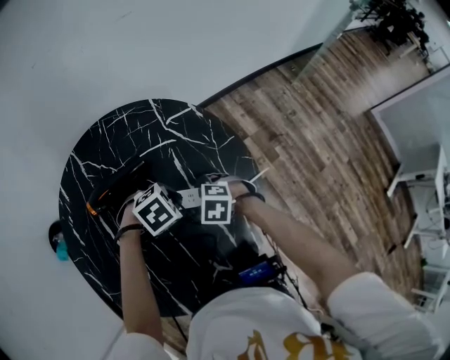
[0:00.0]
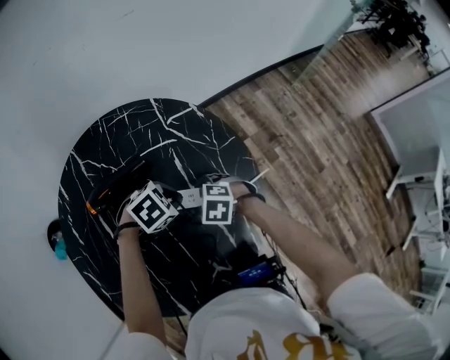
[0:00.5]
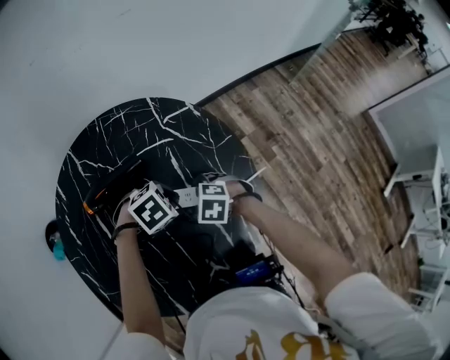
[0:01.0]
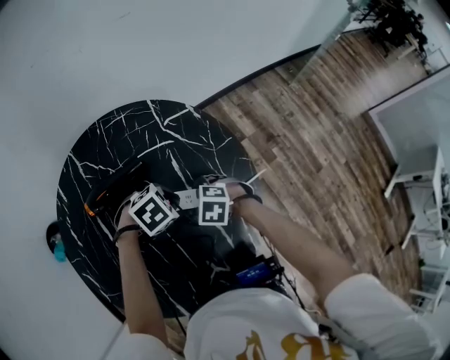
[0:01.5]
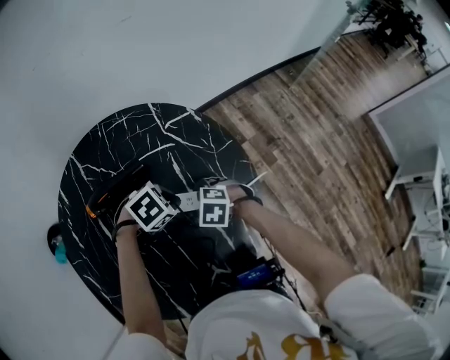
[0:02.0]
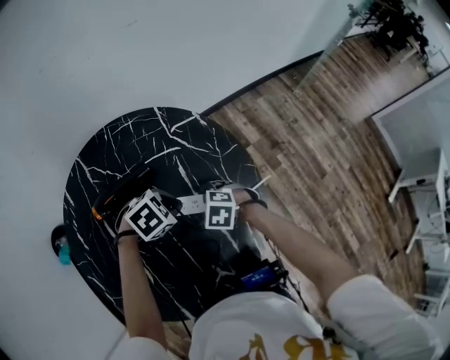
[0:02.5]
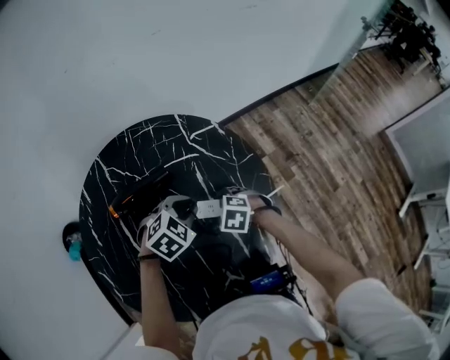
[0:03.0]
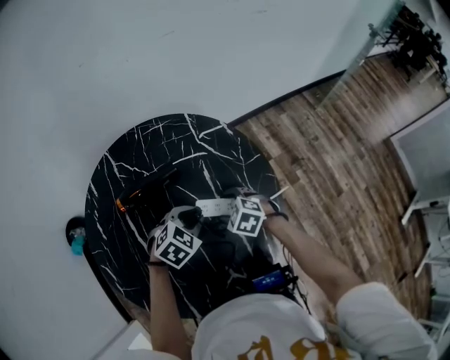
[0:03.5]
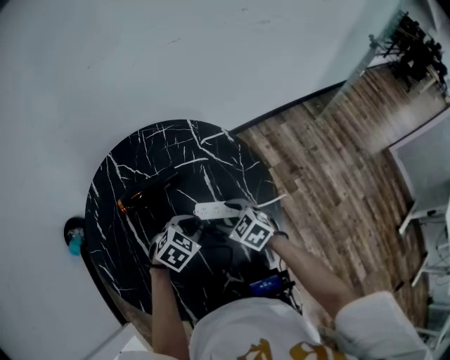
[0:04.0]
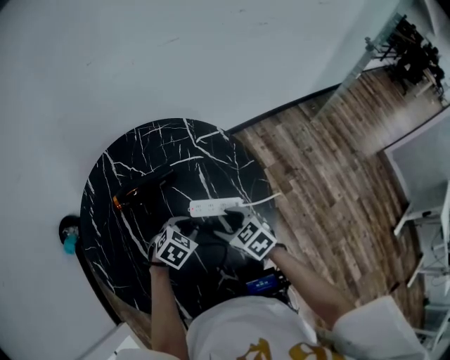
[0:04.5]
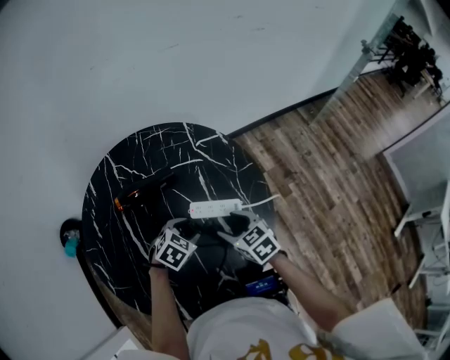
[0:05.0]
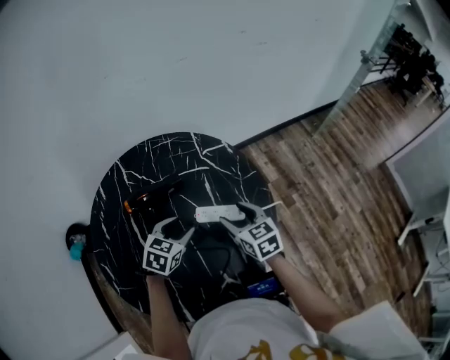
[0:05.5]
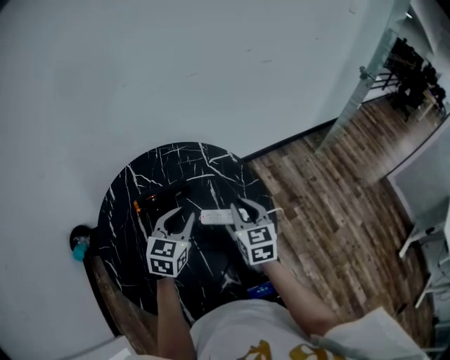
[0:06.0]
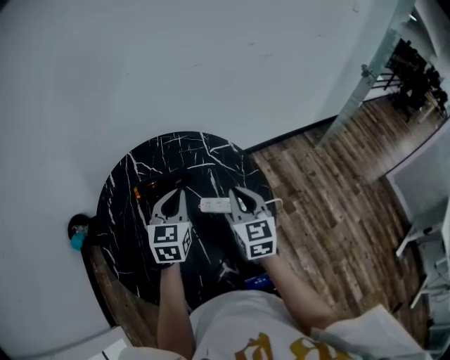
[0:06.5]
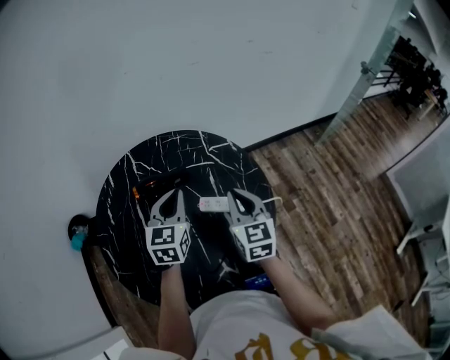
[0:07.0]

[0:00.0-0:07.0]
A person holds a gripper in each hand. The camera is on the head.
0:00.0 to 0:02.0: There are only small adjustments of the grippers.
0:02.0 to 0:03.5: The left gripper turns by approximately 30 degrees.
0:03.5 to 0:05.0: The left gripper moves some 5 cm, and opens up. Meanwhile the right gripper shifts roughly 5 cm upward, and swivels approximately 30 degrees.
0:05.0 to 0:07.0: Both grippers travel together upward, roughly 20 cm. The left gripper points its fingers some 40 degrees further upward, and closes its fingers; the right gripper changes its angle by some 40 degrees, and closes its fingers.

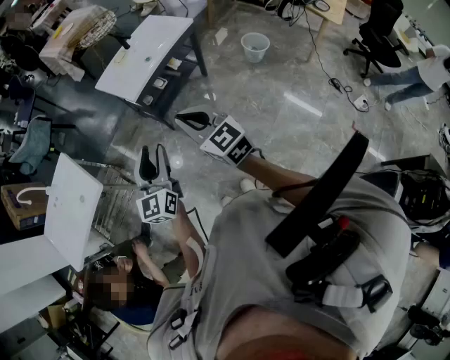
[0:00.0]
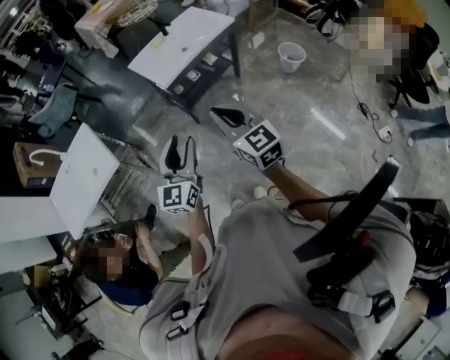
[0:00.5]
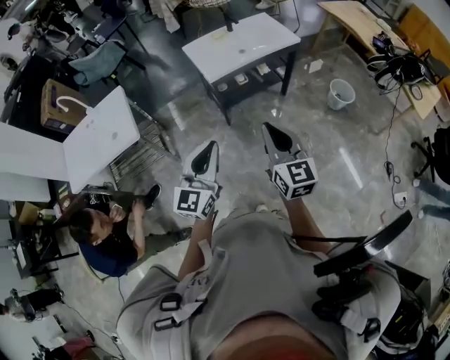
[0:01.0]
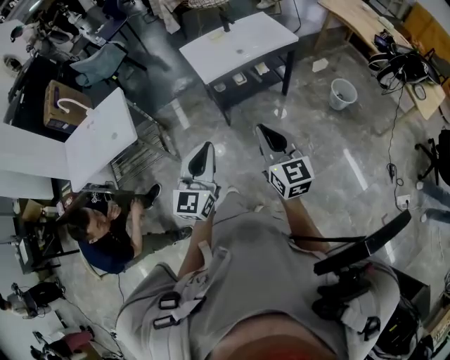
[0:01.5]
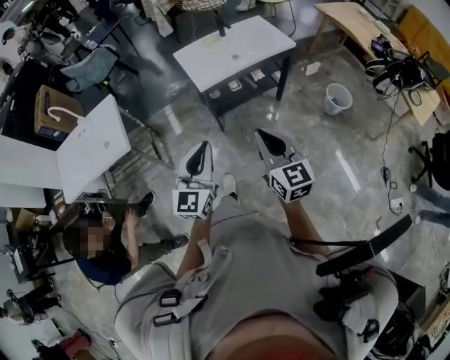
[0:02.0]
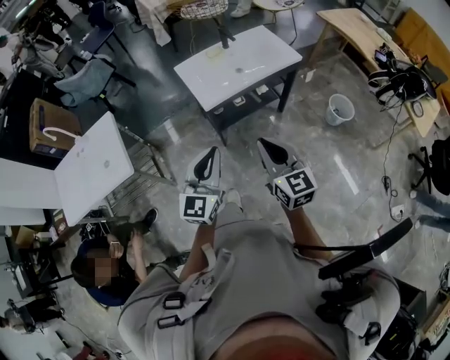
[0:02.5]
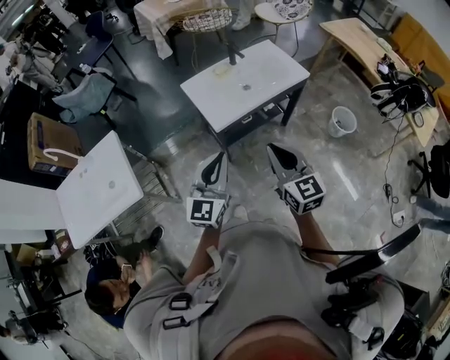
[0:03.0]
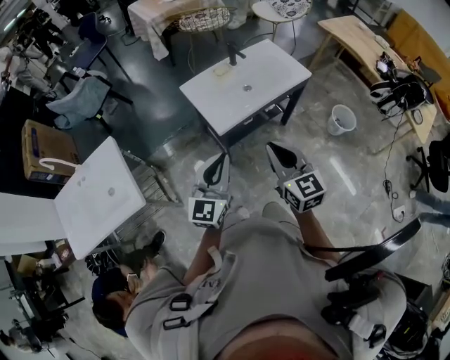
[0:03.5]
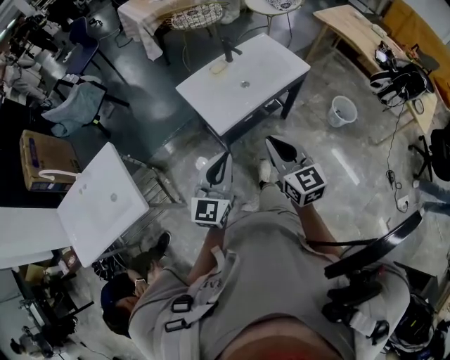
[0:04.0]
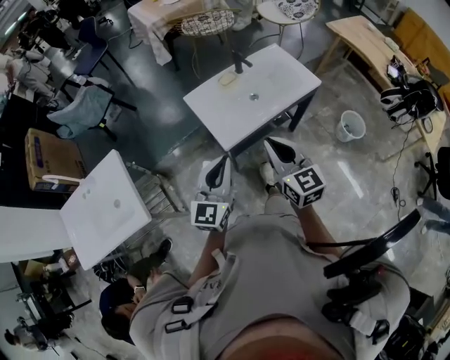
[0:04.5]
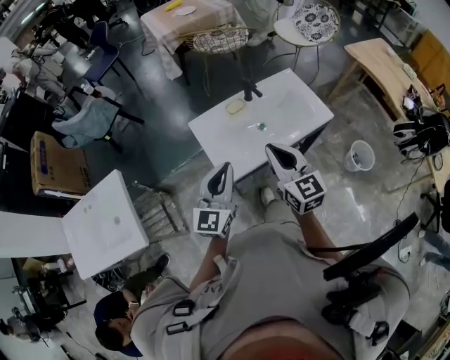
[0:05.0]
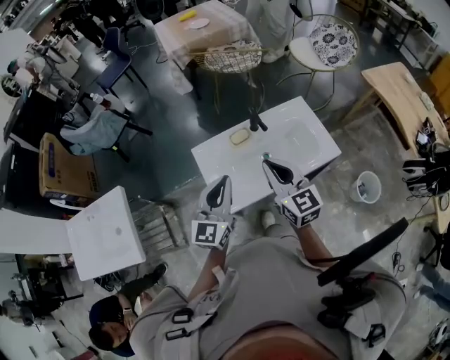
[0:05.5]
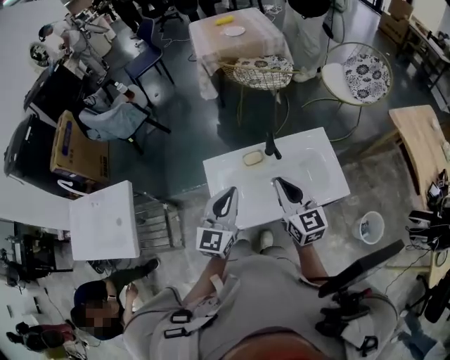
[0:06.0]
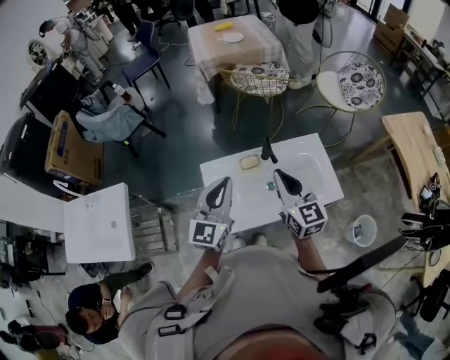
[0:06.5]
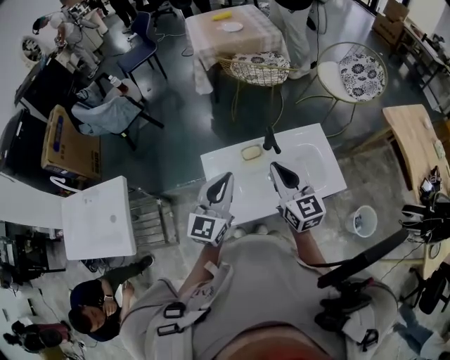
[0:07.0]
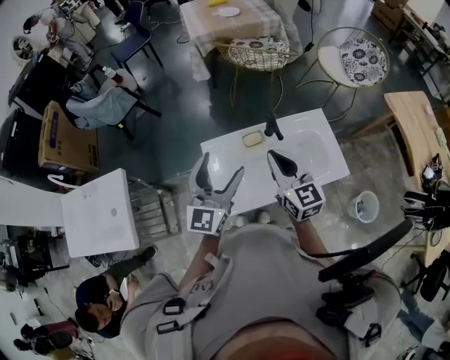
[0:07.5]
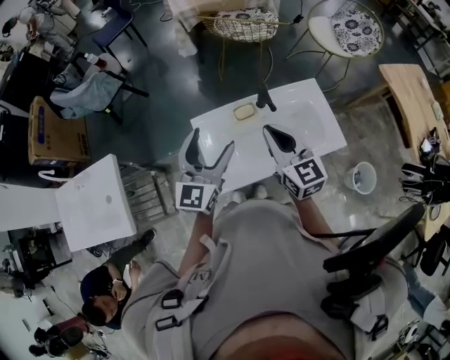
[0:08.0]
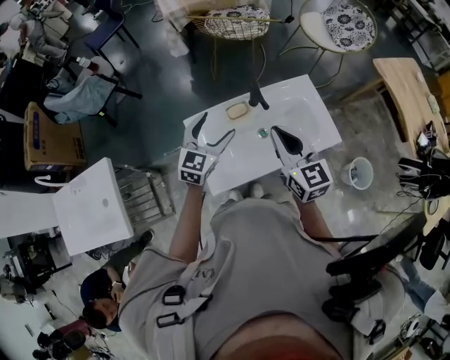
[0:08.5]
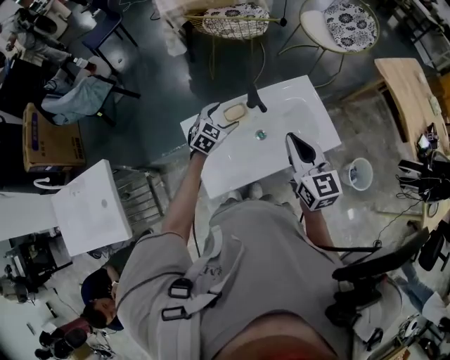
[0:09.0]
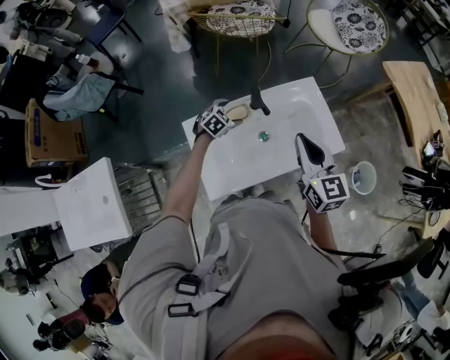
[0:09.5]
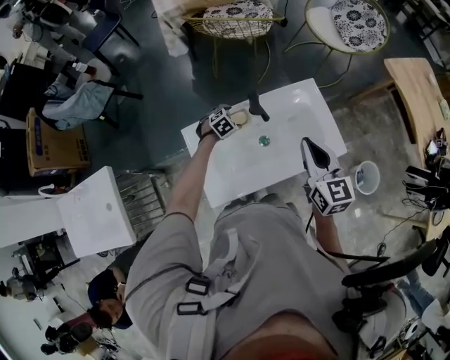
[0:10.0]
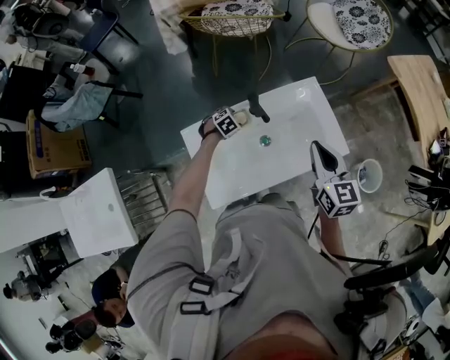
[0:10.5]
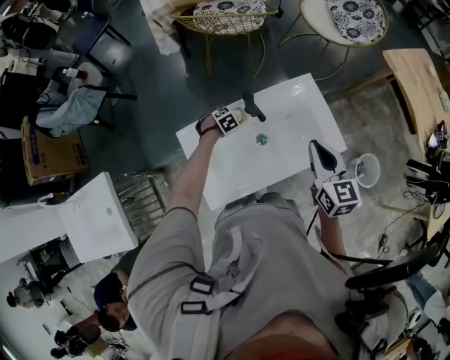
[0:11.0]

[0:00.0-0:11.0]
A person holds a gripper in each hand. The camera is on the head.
0:00.0 to 0:02.0: The left gripper is displaced forward by some 5 cm, and closes; the right gripper is displaced to the right and forward by approximately 10 cm.
0:02.0 to 0:03.5: The two grippers go about 25 cm forward and to the left.
0:03.5 to 0:05.5: Both grippers travel together forward, roughly 35 cm.
0:05.5 to 0:07.5: The two grippers go roughly 10 cm forward. The left gripper opens.
0:07.5 to 0:09.0: The right gripper is displaced to the right by some 10 cm; the left gripper travels downward and forward by approximately 30 cm, and points its fingers approximately 40 degrees further downward.
0:09.0 to 0:11.0: The left gripper goes about 20 cm downward, angles its fingers downward, by some 40 degrees, and closes; the right gripper moves about 10 cm.

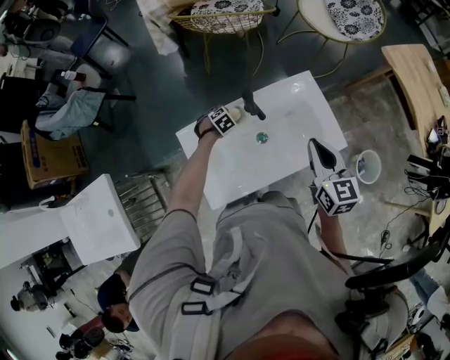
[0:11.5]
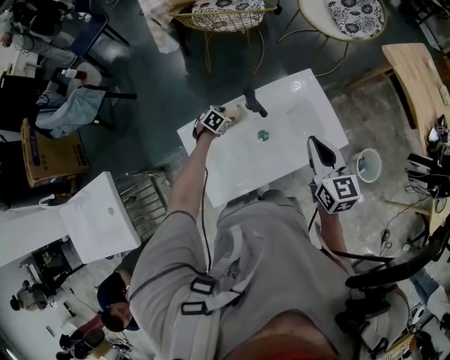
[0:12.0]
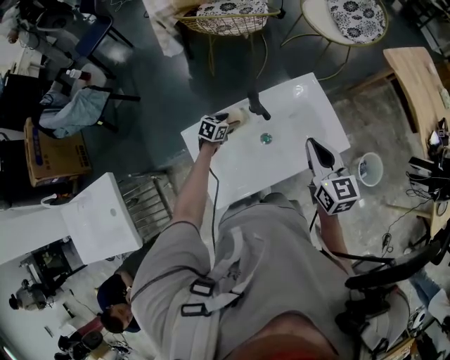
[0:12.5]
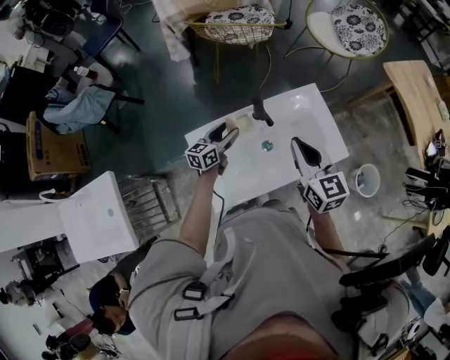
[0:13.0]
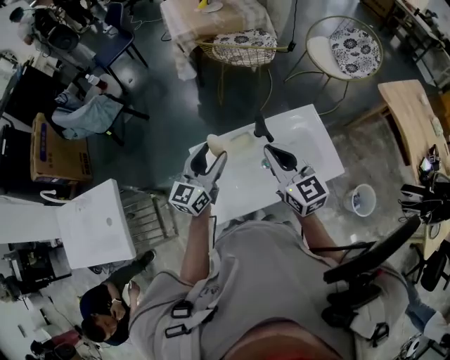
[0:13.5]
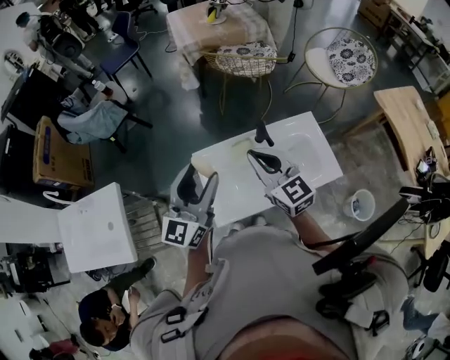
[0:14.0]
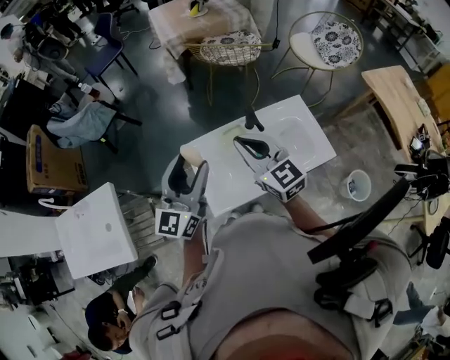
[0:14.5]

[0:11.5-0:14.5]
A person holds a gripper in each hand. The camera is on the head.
0:11.5 to 0:13.0: The right gripper moves to the left, approximately 10 cm. The left gripper goes approximately 20 cm upward, and tilts its fingers approximately 60 degrees upward.
0:13.0 to 0:14.5: The left gripper shifts about 35 cm upward and backward, and swivels about 40 degrees. Meanwhile the right gripper travels to the left and upward by approximately 20 cm, and changes its angle by approximately 20 degrees.

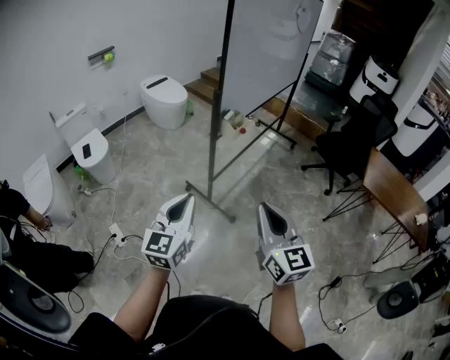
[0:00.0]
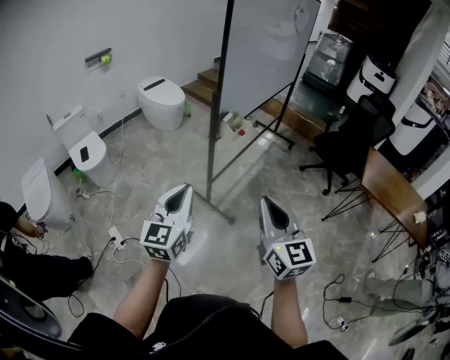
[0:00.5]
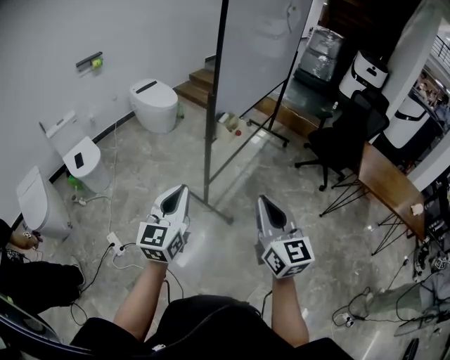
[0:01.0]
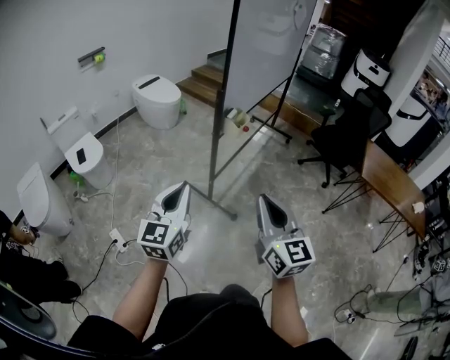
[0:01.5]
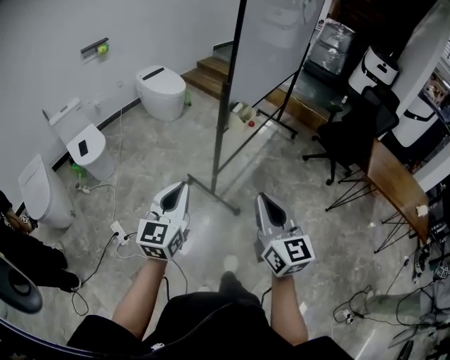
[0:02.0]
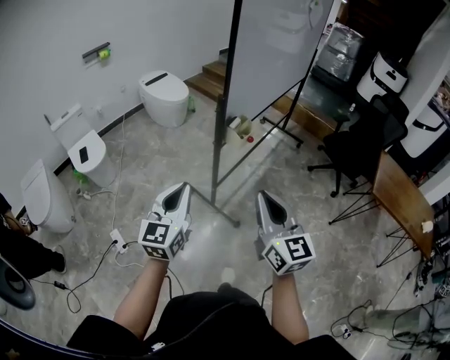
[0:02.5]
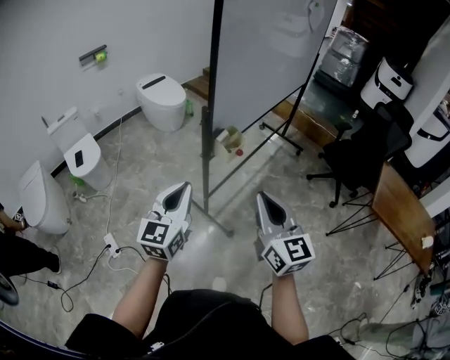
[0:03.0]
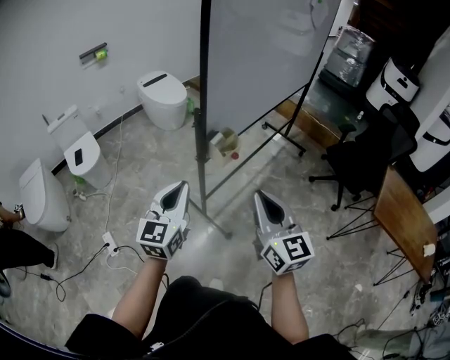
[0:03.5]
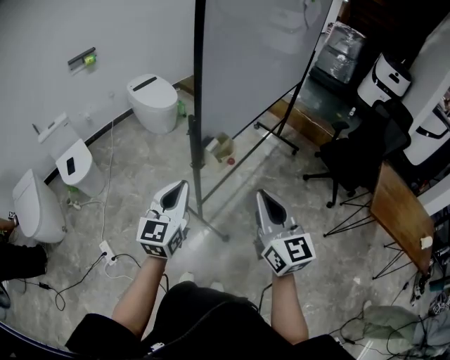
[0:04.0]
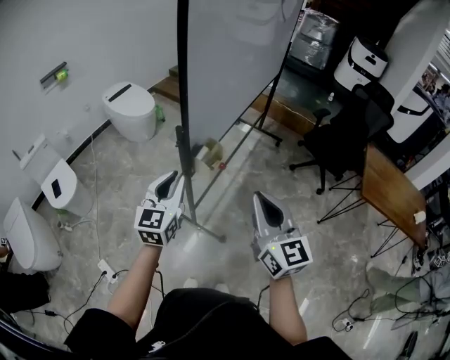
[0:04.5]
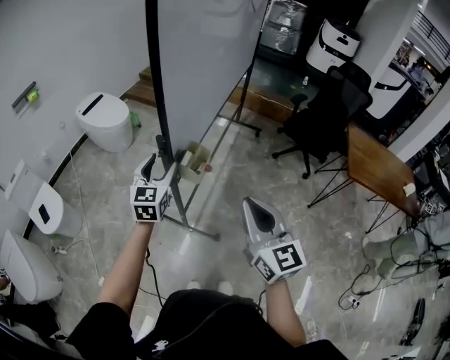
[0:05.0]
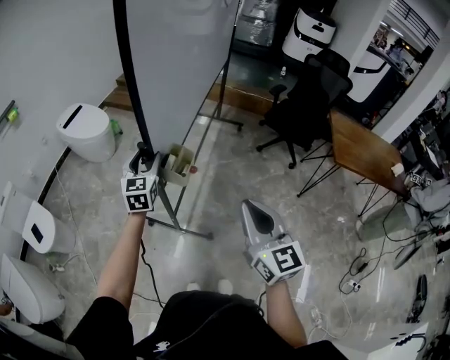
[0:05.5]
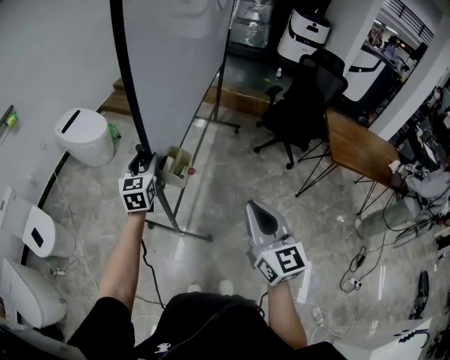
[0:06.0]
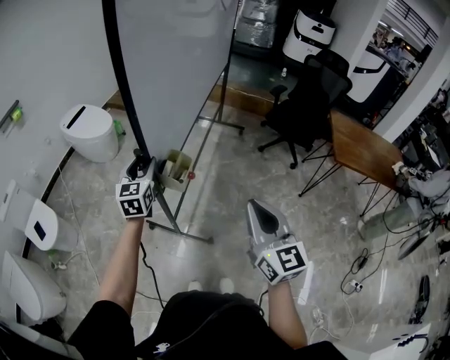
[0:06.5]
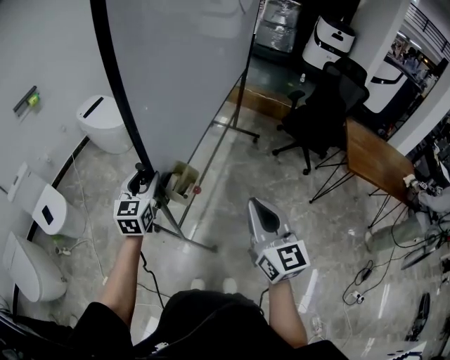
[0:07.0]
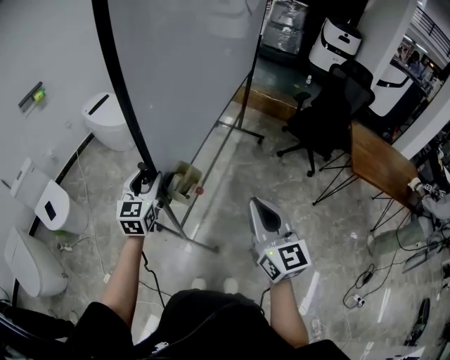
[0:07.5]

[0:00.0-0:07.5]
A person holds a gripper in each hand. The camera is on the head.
0:00.0 to 0:02.0: Both grippers travel together to the left, roughly 5 cm.
0:02.0 to 0:04.0: Both grippers move forward and to the right, some 25 cm.
0:04.0 to 0:05.5: The right gripper rotates approximately 20 degrees. Meanwhile the left gripper shifts some 25 cm forward, and opens.
0:05.5 to 0:07.5: The left gripper moves backward and to the left, roughly 15 cm.
